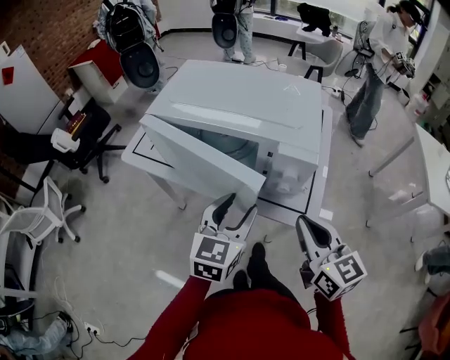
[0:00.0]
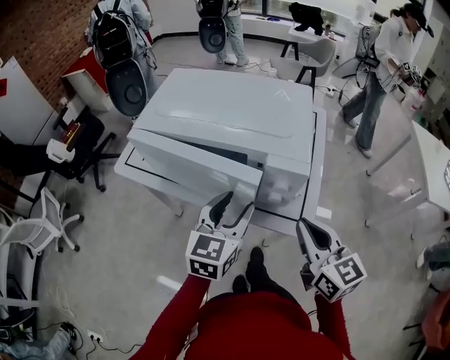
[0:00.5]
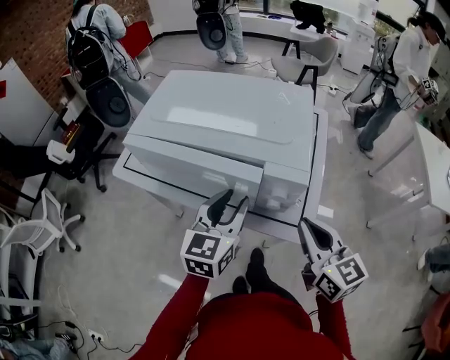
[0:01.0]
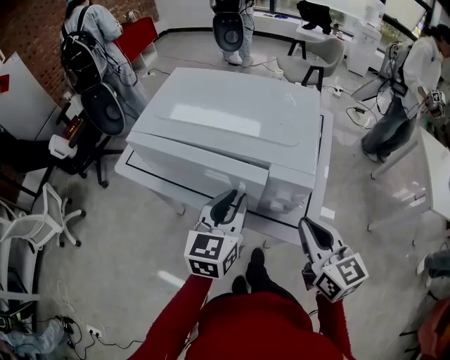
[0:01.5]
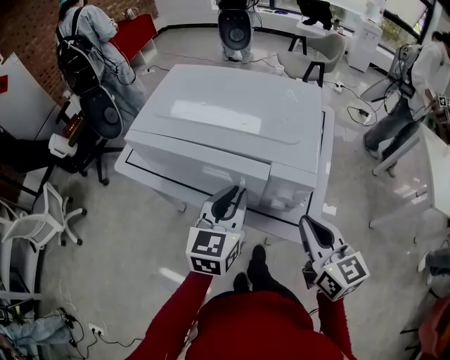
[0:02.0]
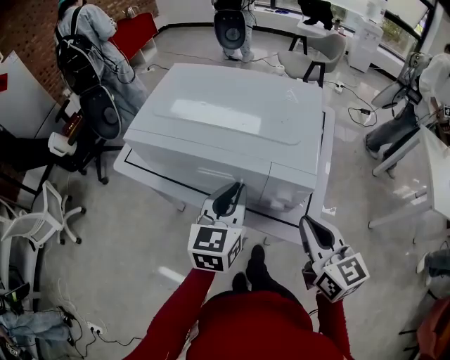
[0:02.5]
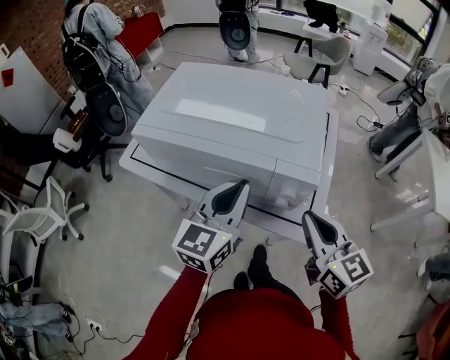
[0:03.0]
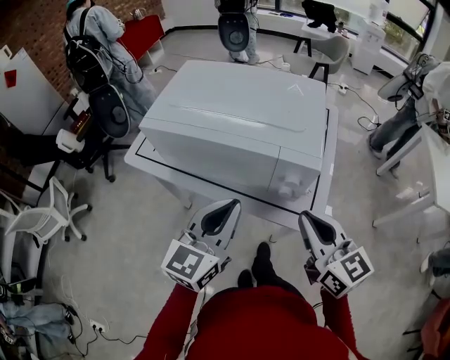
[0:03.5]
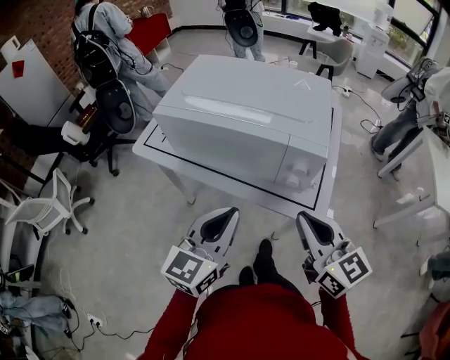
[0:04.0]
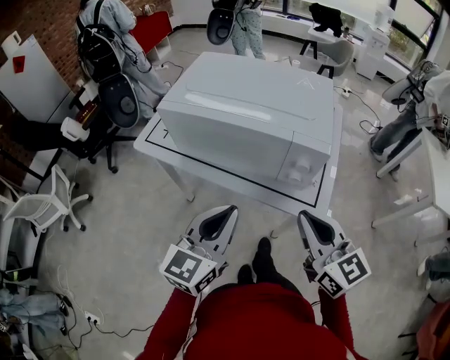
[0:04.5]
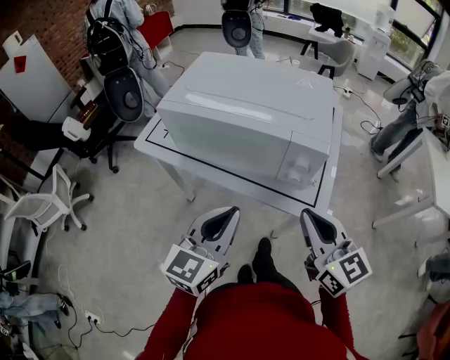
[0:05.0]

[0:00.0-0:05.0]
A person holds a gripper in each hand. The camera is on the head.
0:00.0 to 0:02.5: The left gripper heads forward, covering some 10 cm, and closes its fingers. Meanwhile the right gripper ends up approximately 5 cm from where it was.
0:02.5 to 0:05.0: The left gripper moves backward, approximately 15 cm, while the right gripper is displaced backward by some 5 cm.

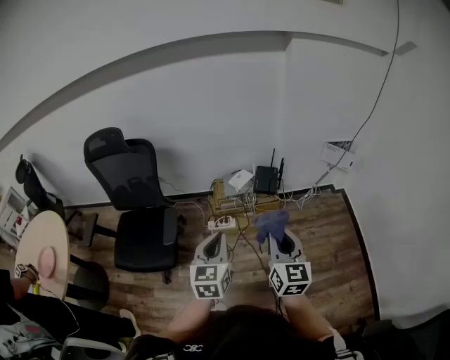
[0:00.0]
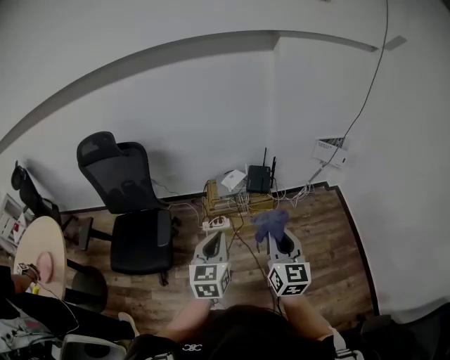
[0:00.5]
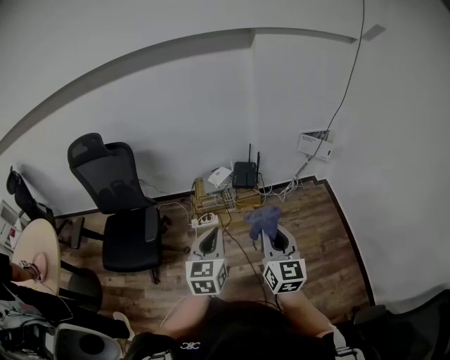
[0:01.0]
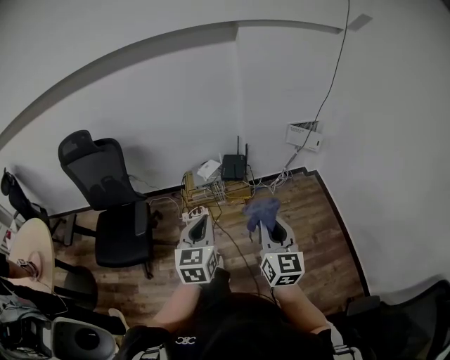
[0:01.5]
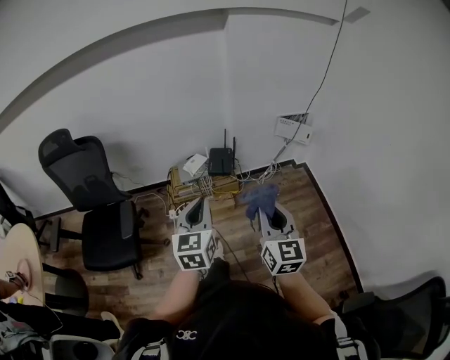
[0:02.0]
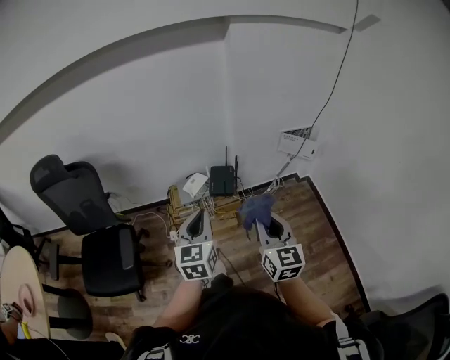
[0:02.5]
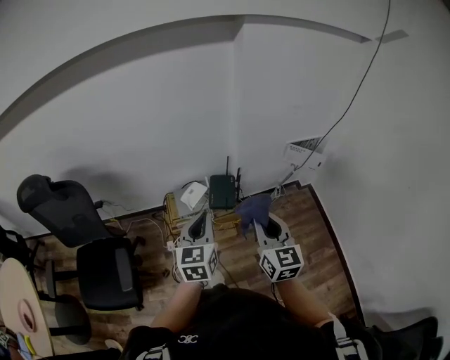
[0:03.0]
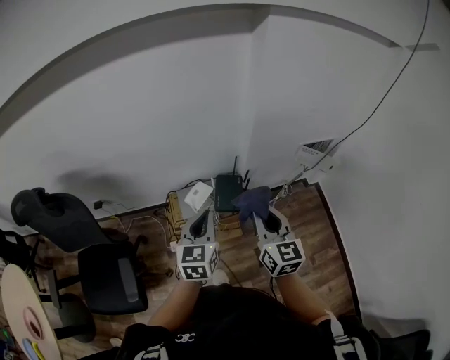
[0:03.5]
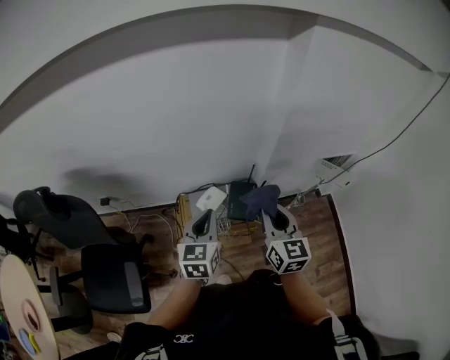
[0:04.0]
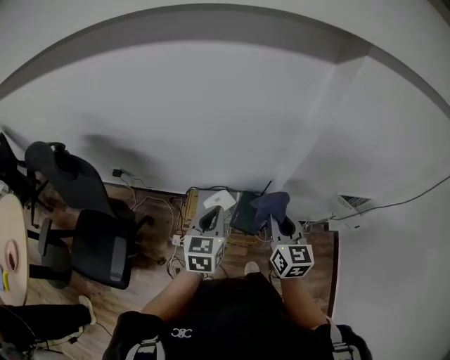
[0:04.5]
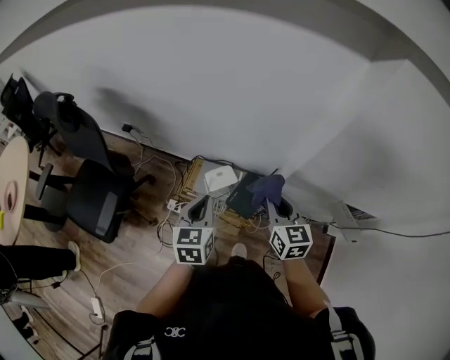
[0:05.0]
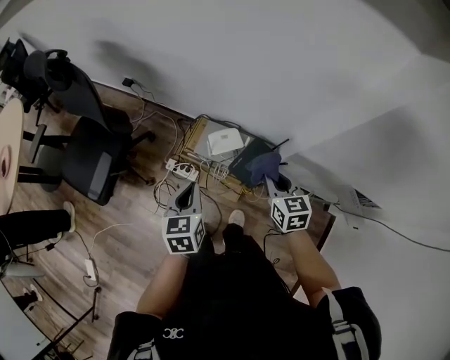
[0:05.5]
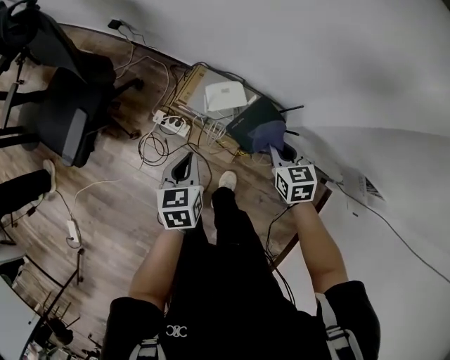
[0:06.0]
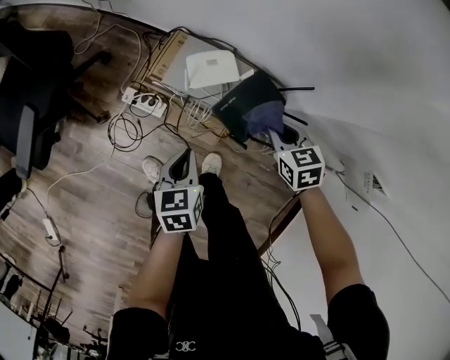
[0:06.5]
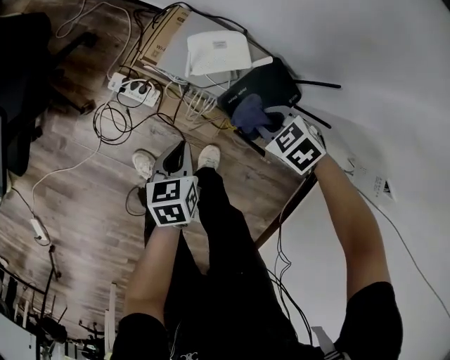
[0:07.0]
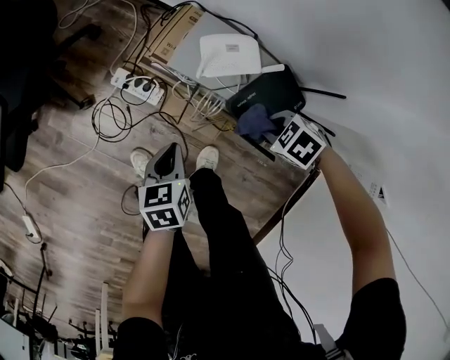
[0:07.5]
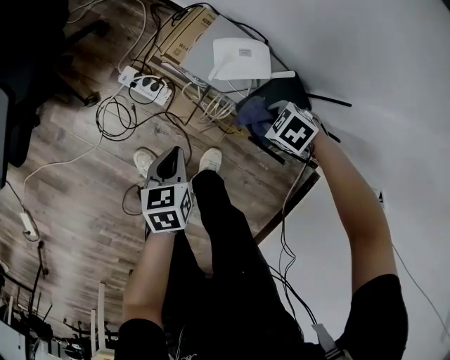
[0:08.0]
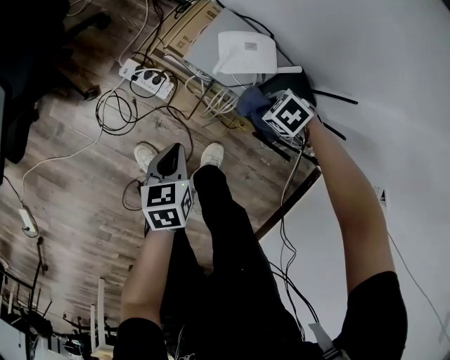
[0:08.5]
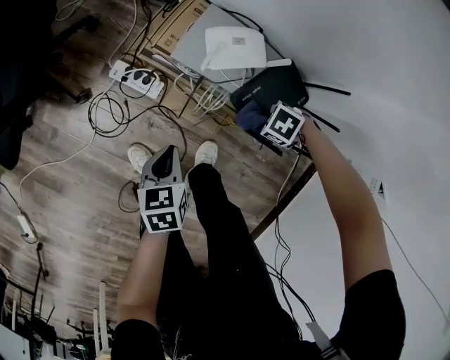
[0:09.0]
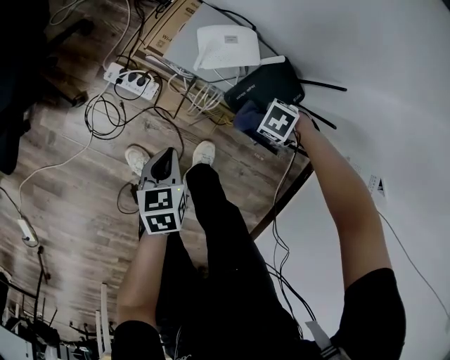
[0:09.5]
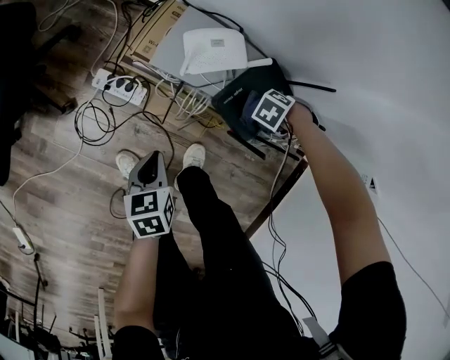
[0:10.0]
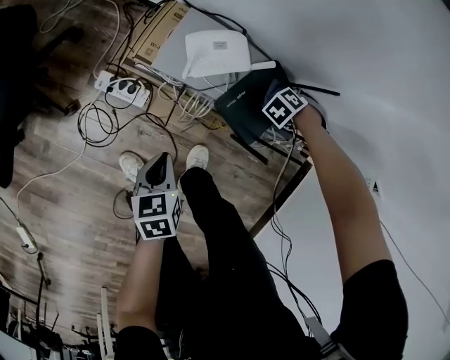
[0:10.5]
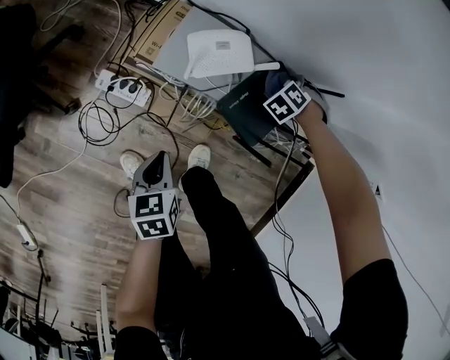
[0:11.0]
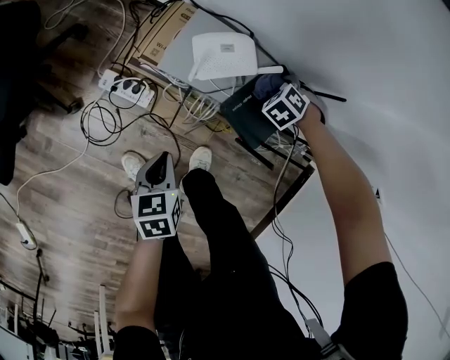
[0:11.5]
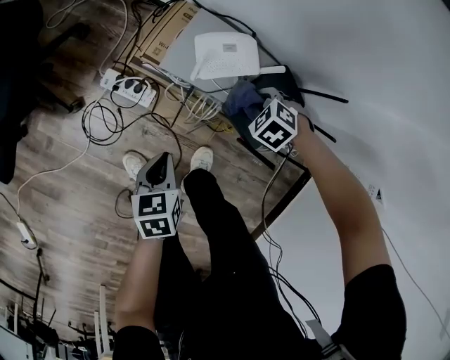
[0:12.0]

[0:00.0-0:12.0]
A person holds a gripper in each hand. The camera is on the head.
0:00.0 to 0:02.0: Both grippers move to the right, about 15 cm.
0:02.0 to 0:04.0: The two grippers travel together, forward, some 50 cm.
0:04.0 to 0:06.0: The two grippers go roughly 25 cm downward. The right gripper tilts its fingers some 30 degrees downward. The left gripper turns by approximately 50 degrees.
0:06.0 to 0:08.0: Both grippers move downward, approximately 30 cm. The right gripper angles its fingers downward, by some 30 degrees.
0:08.0 to 0:10.0: The right gripper shifts by roughly 15 cm, and swivels approximately 30 degrees.
0:10.0 to 0:12.0: The right gripper shifts by approximately 10 cm, and rotates about 30 degrees.

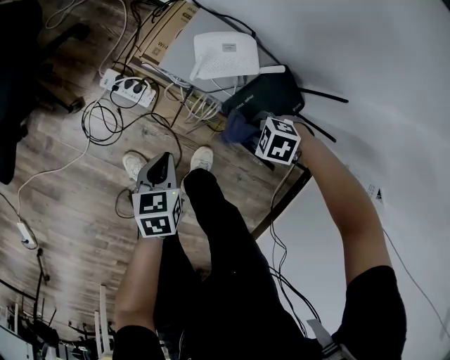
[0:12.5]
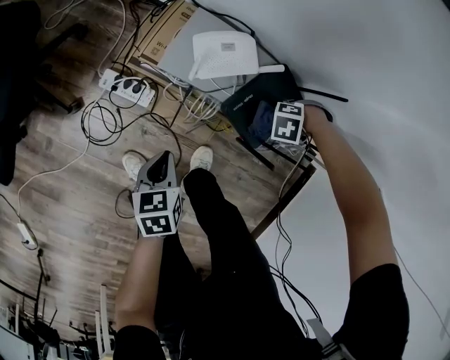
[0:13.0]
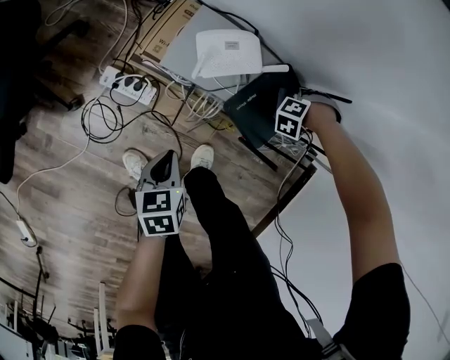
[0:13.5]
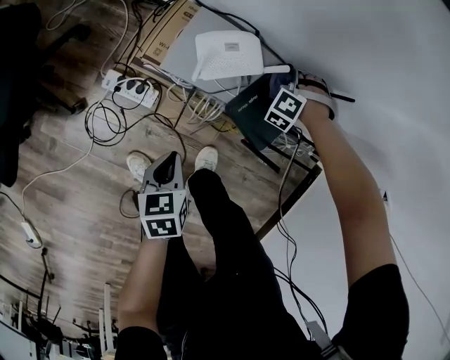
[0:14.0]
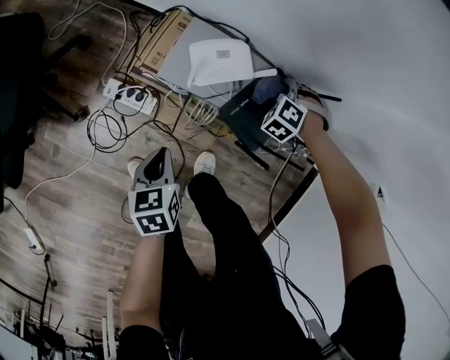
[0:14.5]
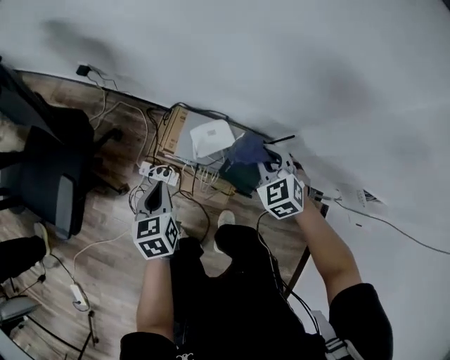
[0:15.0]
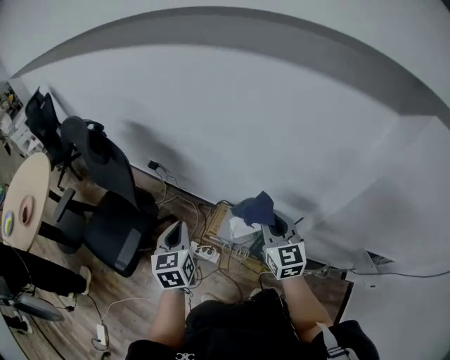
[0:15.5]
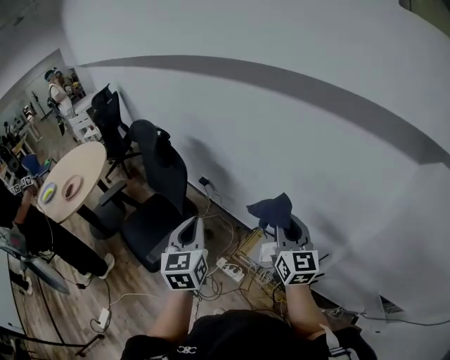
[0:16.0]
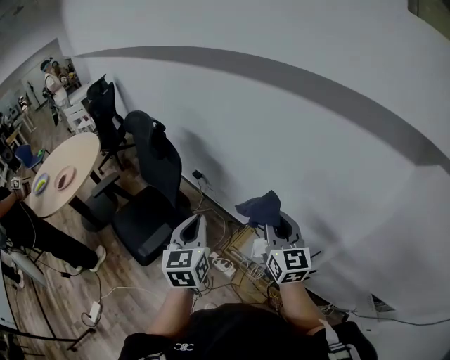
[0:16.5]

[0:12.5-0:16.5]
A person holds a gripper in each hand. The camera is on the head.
0:12.5 to 0:14.5: The right gripper changes place by about 20 cm, and rotates roughly 50 degrees.
0:14.5 to 0:16.5: Both grippers travel together upward, about 70 cm. The right gripper points its fingers about 60 degrees further upward. Meanwhile the left gripper tips its fingers upward by some 40 degrees.

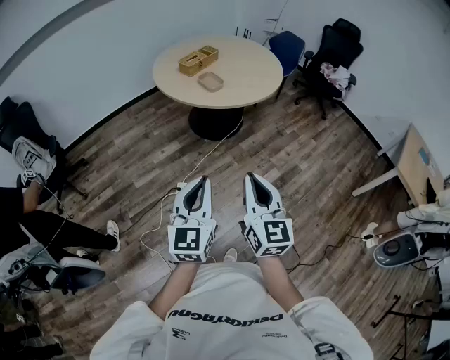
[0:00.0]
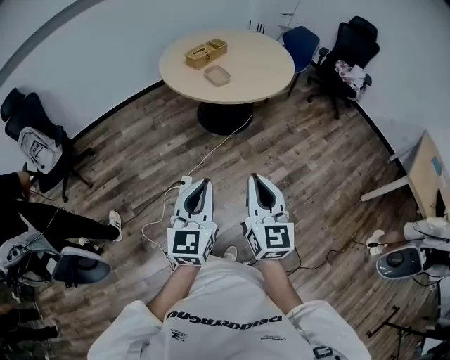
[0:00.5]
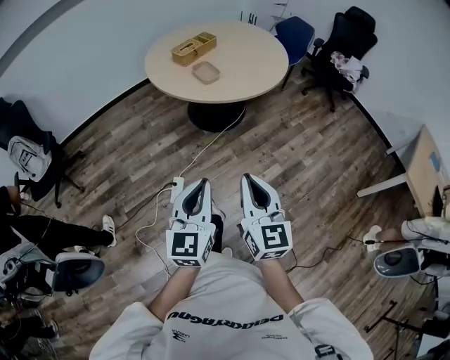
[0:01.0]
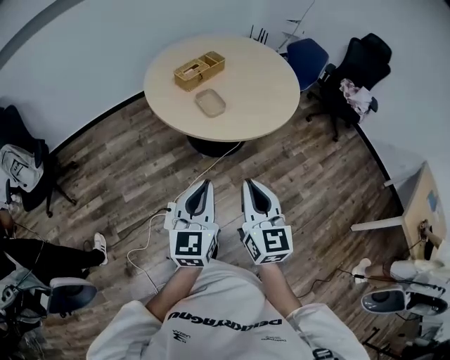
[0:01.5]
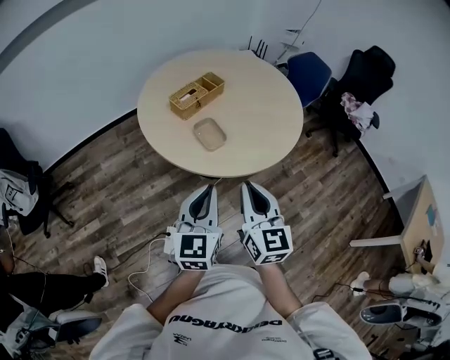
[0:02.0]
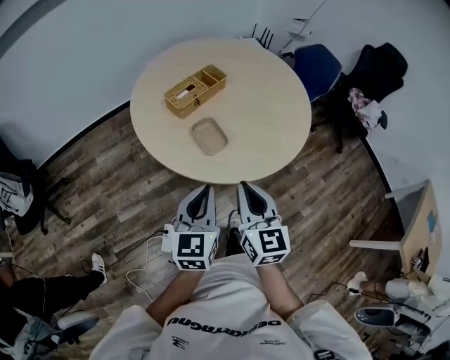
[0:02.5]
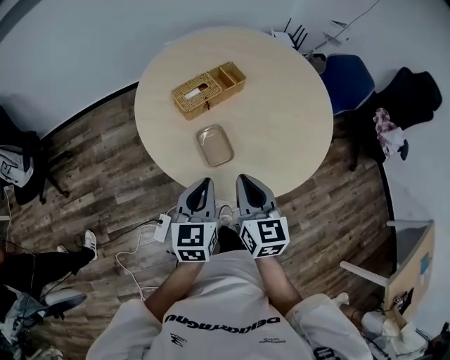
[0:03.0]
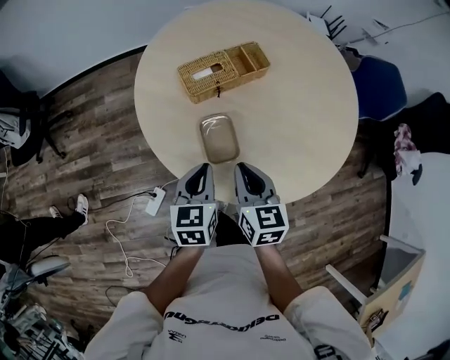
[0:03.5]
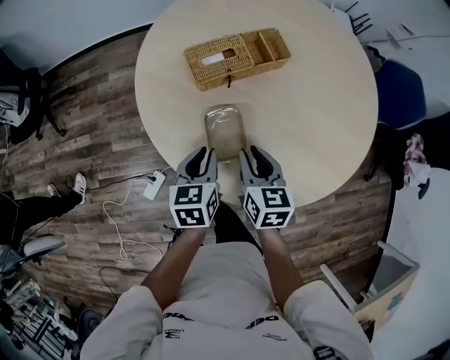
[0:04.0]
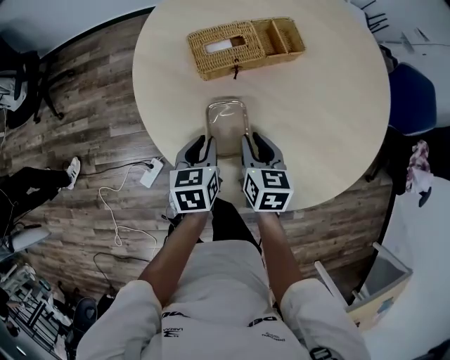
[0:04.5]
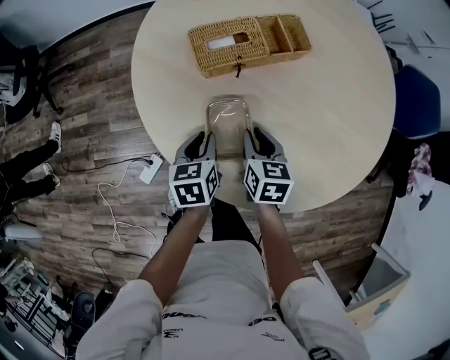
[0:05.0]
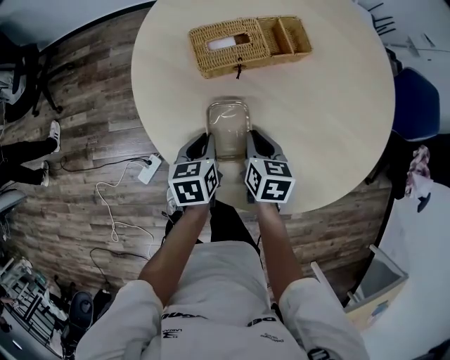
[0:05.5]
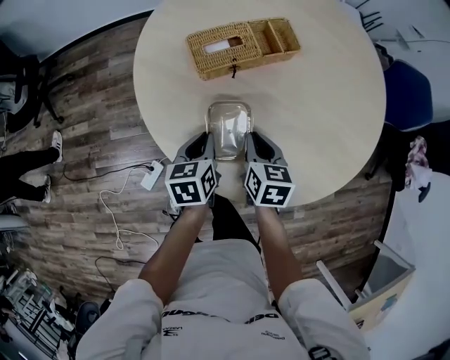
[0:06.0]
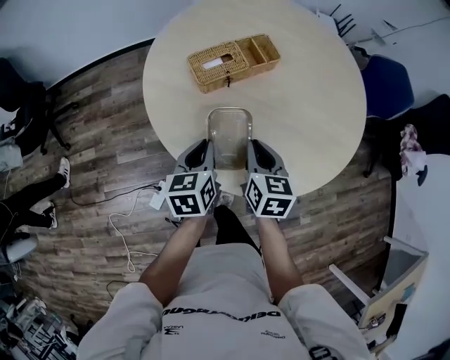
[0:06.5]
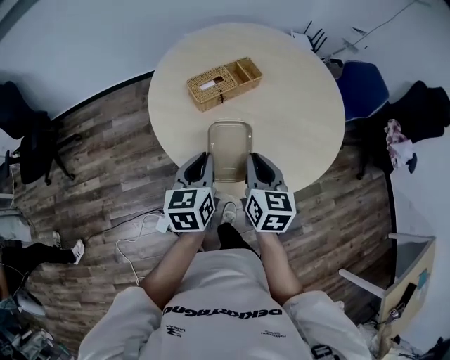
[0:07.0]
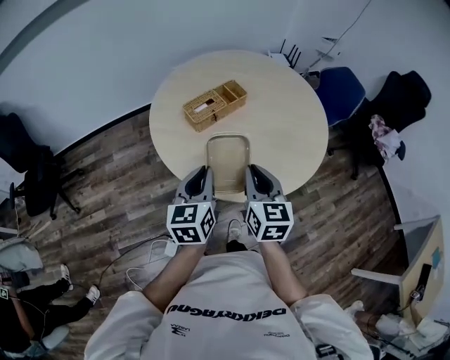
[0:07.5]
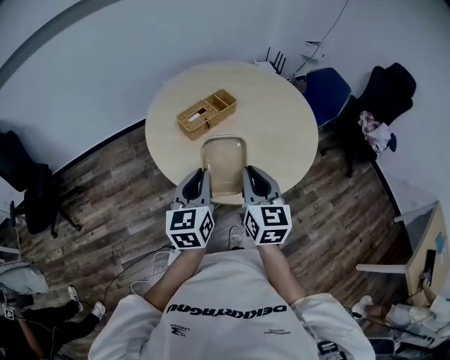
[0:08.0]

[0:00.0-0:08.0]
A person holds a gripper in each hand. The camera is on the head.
0:00.0 to 0:02.0: The two grippers travel together, forward, approximately 50 cm.
0:02.0 to 0:04.0: The grippers both shift forward and downward by some 40 cm. The left gripper angles its fingers downward, by approximately 30 degrees, while the right gripper changes its angle by roughly 40 degrees.
0:04.0 to 0:06.0: The right gripper is displaced downward by about 5 cm.
0:06.0 to 0:08.0: The grippers both shift upward and backward by about 35 cm. The right gripper tilts its fingers roughly 30 degrees upward; the left gripper tilts its fingers approximately 30 degrees upward.
